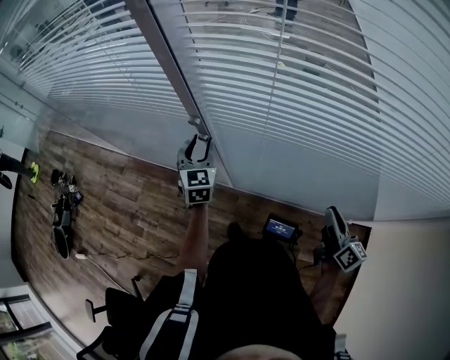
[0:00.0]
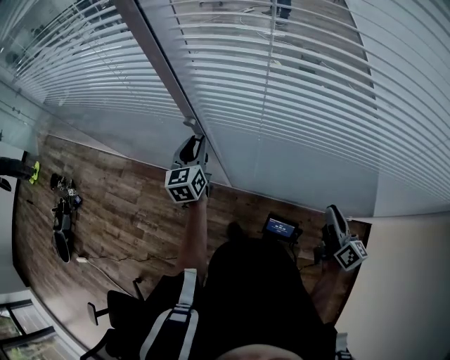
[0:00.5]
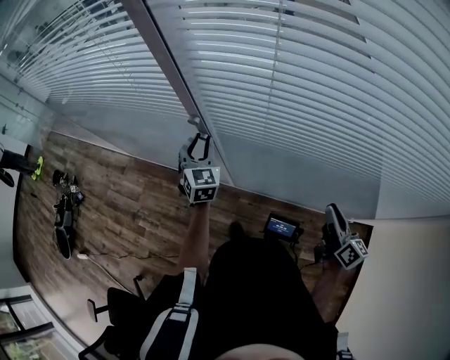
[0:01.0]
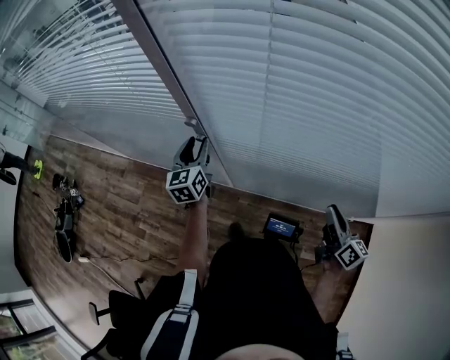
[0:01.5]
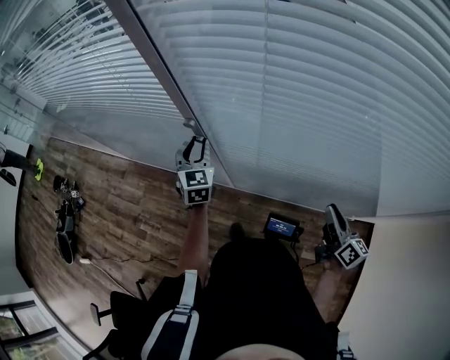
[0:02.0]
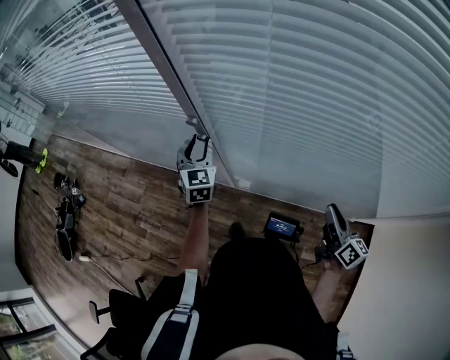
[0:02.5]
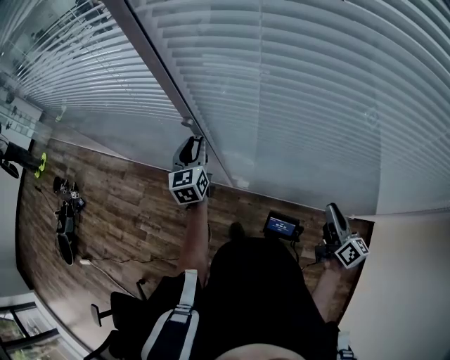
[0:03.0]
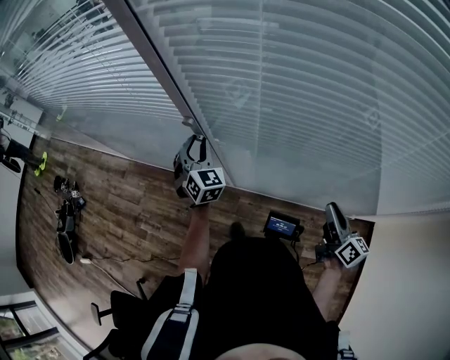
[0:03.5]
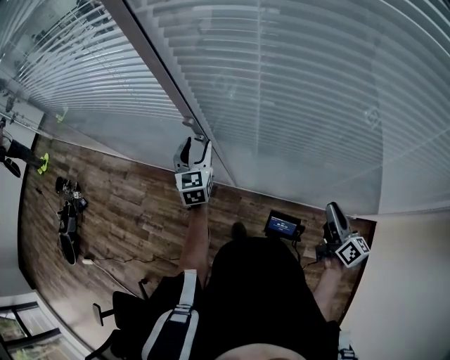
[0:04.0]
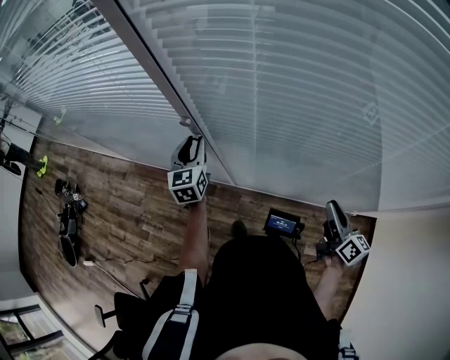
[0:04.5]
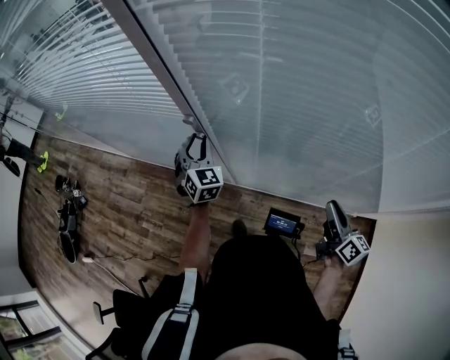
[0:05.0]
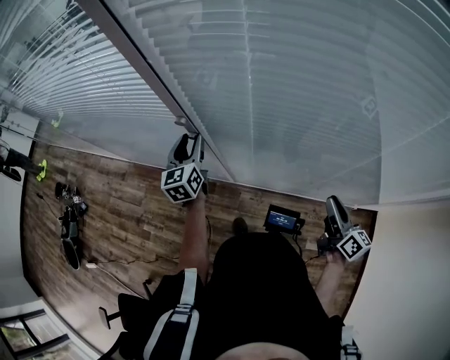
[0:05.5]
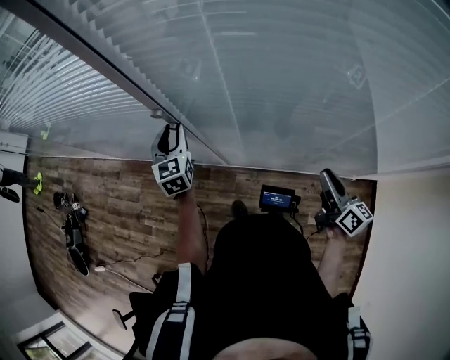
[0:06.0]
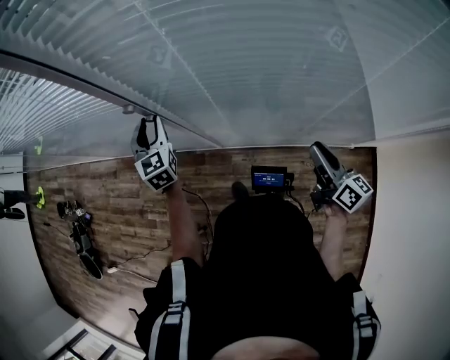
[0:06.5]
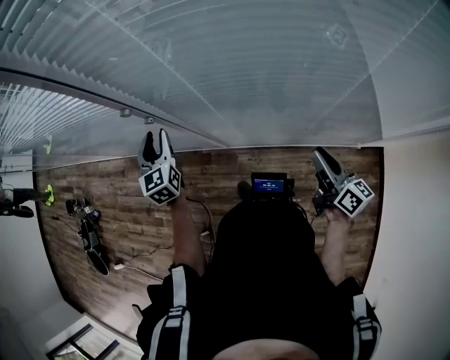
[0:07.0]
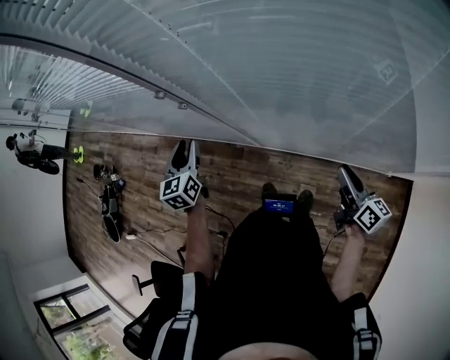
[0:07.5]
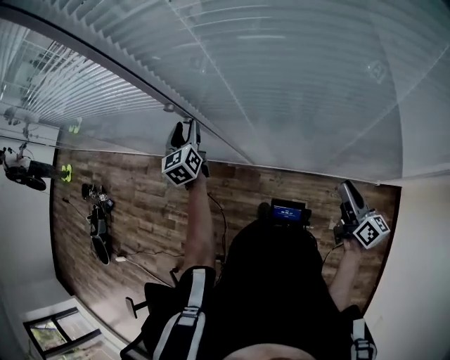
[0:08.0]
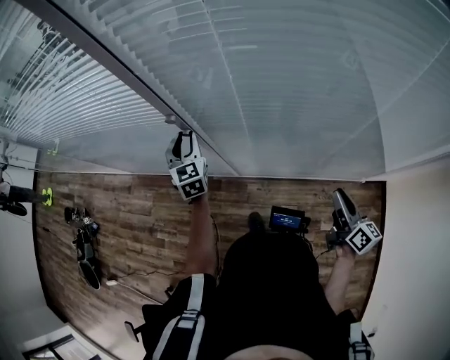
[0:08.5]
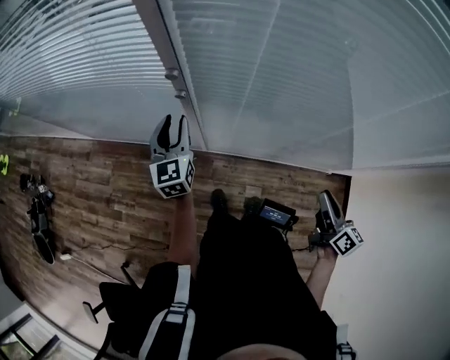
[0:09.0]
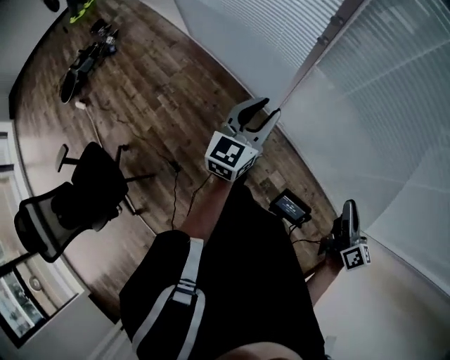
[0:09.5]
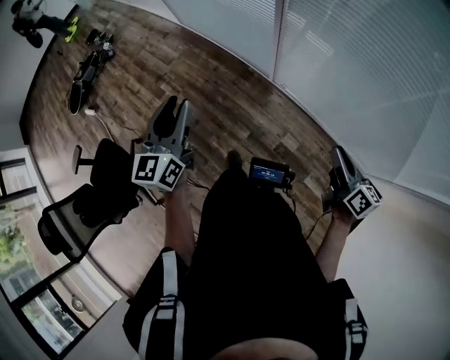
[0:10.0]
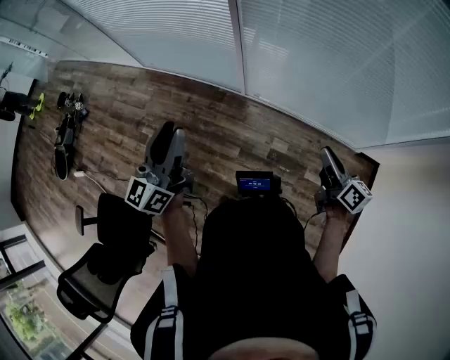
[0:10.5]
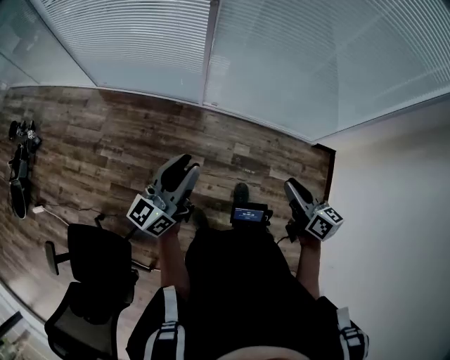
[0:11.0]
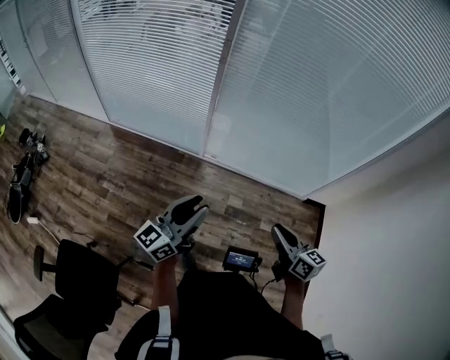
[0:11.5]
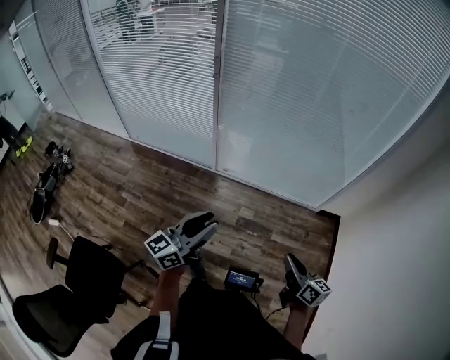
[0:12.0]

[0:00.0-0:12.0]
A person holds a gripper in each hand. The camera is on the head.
0:02.0 to 0:04.0: The left gripper opens.
0:06.0 to 0:08.0: The right gripper travels downward by roughly 10 cm; the left gripper reaches roughly 10 cm backward, then returns.
0:08.0 to 0:10.0: The left gripper shifts by approximately 50 cm. The right gripper goes upward and returns, some 10 cm each way, and changes its angle by some 30 degrees.
0:10.0 to 0:12.0: The left gripper moves approximately 30 cm, and turns by approximately 60 degrees, while the right gripper ends up some 40 cm from where it was, and changes its angle by some 20 degrees.

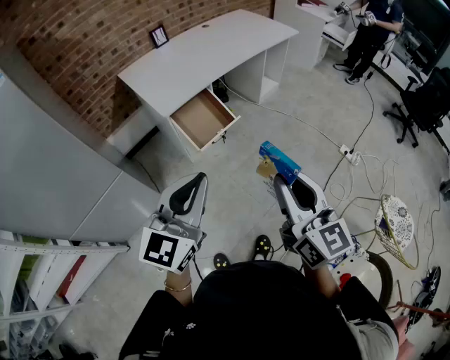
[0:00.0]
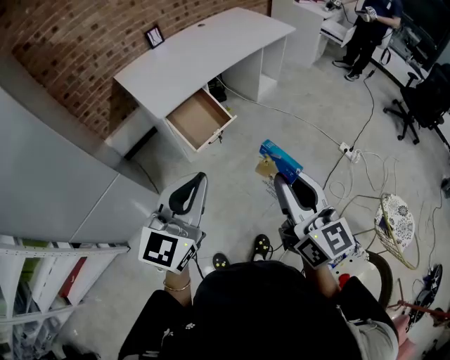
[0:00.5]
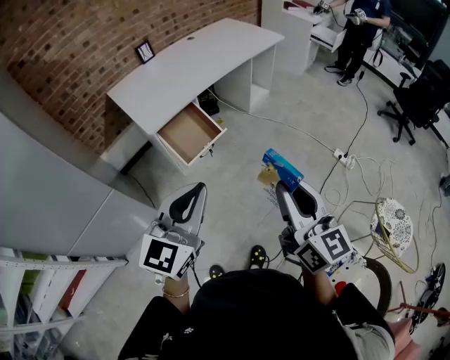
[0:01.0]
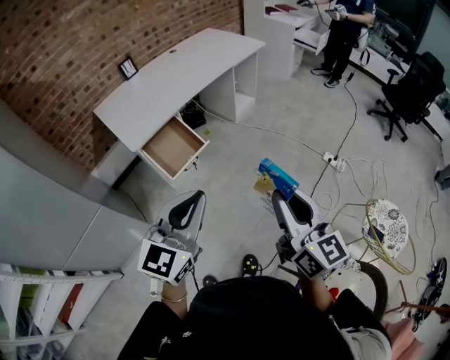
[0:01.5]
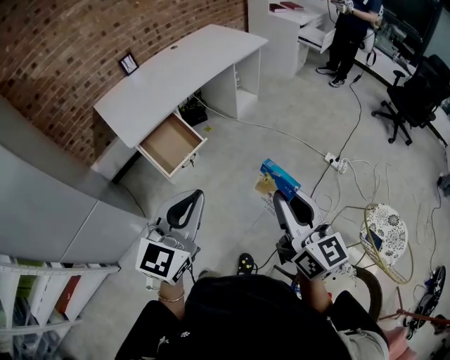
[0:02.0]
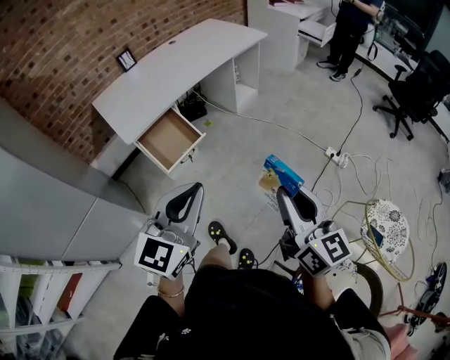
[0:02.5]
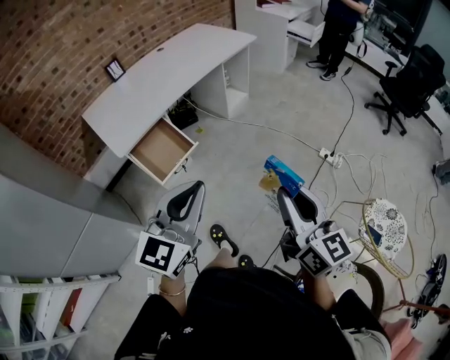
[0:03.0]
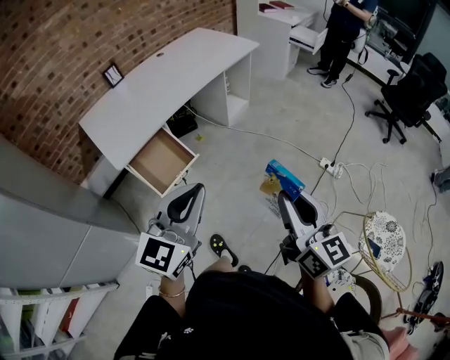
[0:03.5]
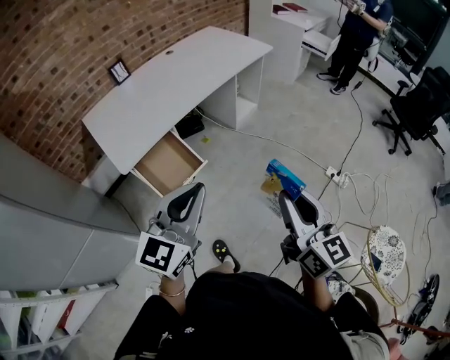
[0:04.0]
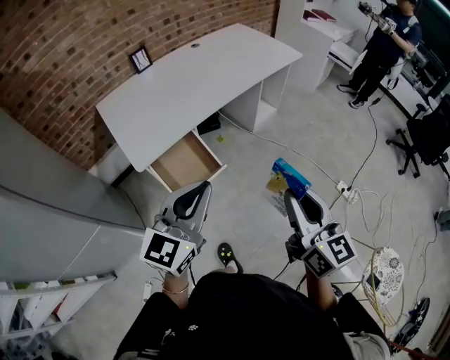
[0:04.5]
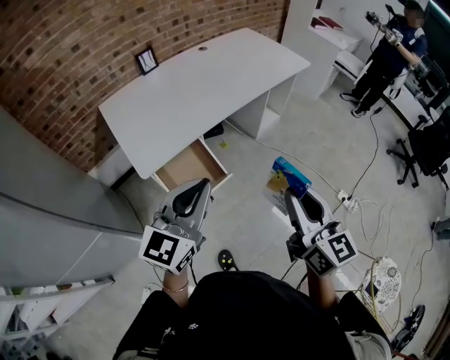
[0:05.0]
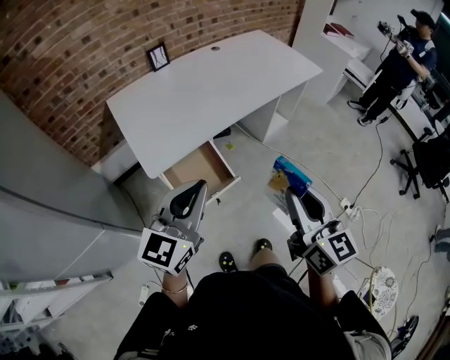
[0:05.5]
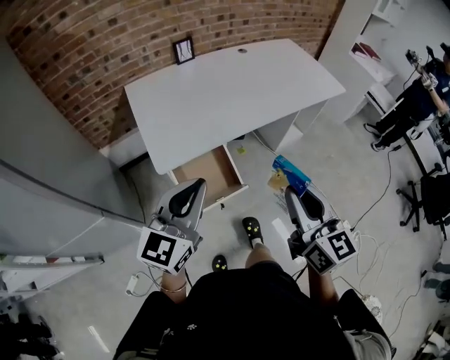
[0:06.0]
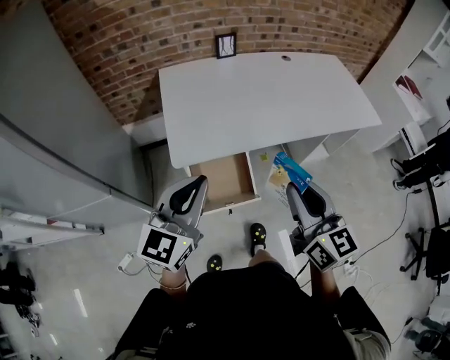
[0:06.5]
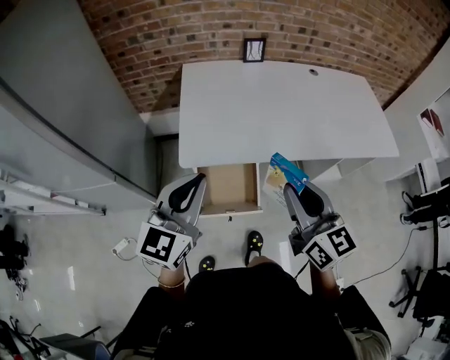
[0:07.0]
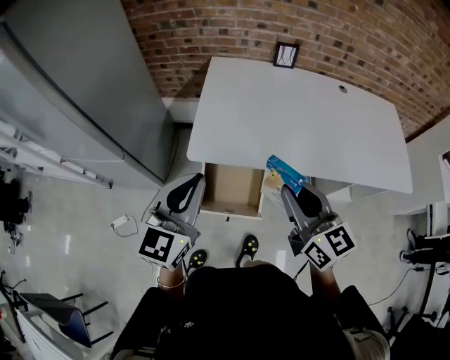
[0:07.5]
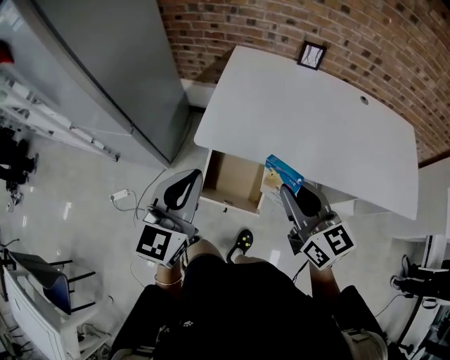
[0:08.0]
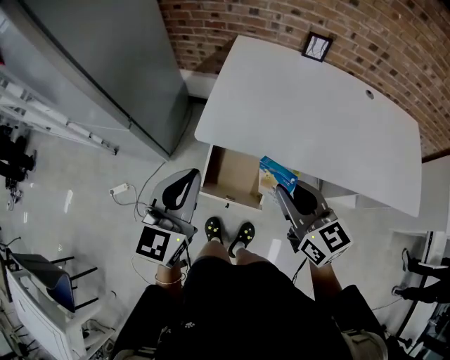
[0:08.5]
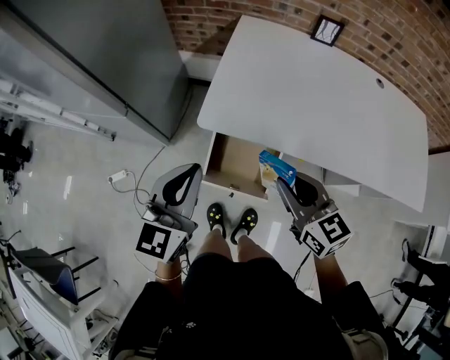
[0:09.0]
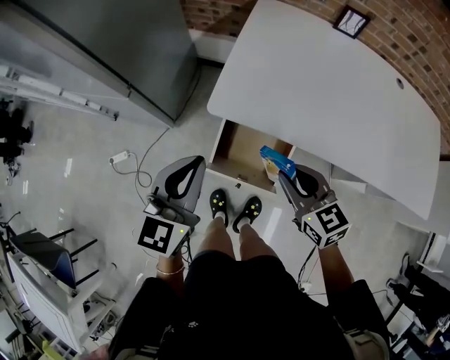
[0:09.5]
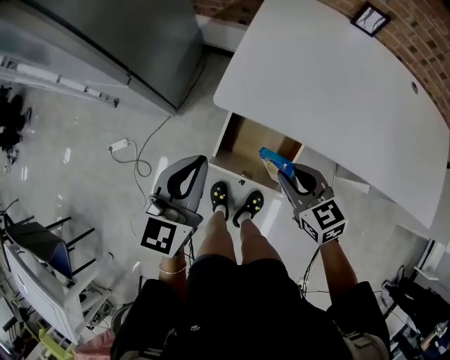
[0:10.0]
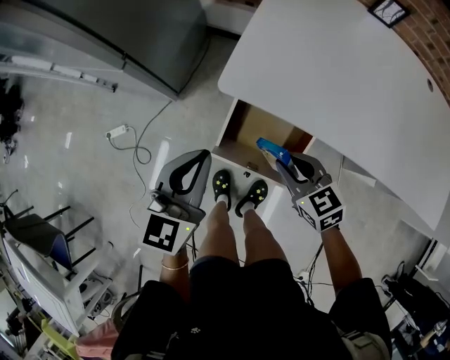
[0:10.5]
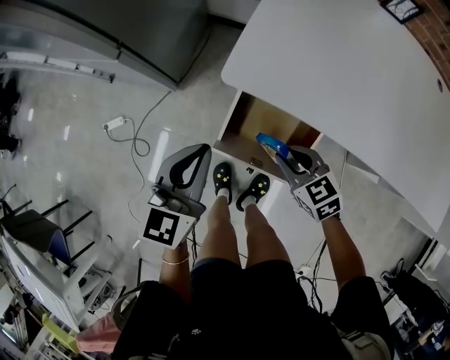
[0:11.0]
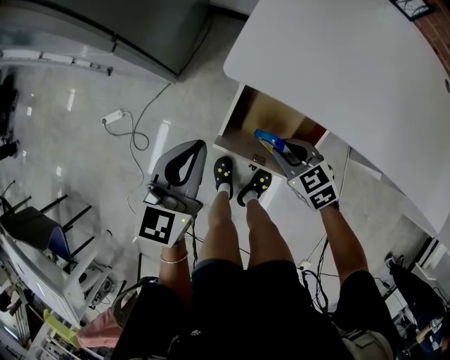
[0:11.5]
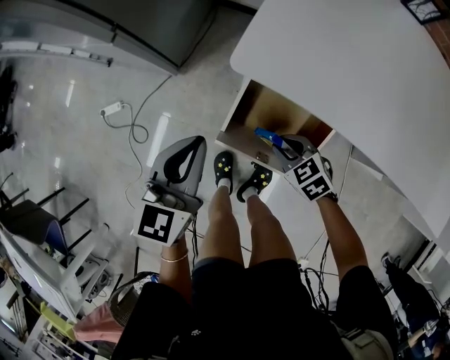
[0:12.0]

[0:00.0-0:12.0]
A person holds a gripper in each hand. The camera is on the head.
0:00.0 to 0:02.0: The grippers both shift to the right by about 20 cm.
0:02.0 to 0:04.0: Both grippers travel together forward, some 15 cm.
0:04.0 to 0:06.0: The right gripper moves forward and to the left, some 25 cm, and rotates about 20 degrees; the left gripper travels to the left and forward by roughly 25 cm, and rotates about 20 degrees.
0:06.0 to 0:08.0: The right gripper ends up some 20 cm from where it was, and rotates roughly 50 degrees. Meanwhile the left gripper shifts by some 5 cm, and turns by roughly 50 degrees.
0:08.0 to 0:10.0: The right gripper travels downward by about 20 cm, and turns by roughly 30 degrees; the left gripper shifts approximately 15 cm downward and to the left.
0:10.0 to 0:12.0: The left gripper is displaced downward by about 15 cm. The right gripper is displaced downward by approximately 20 cm, and rotates about 30 degrees.

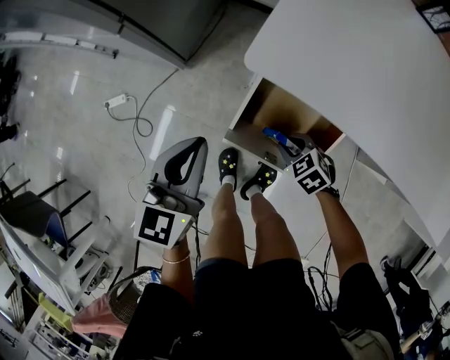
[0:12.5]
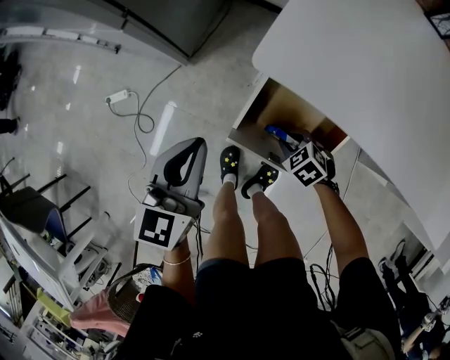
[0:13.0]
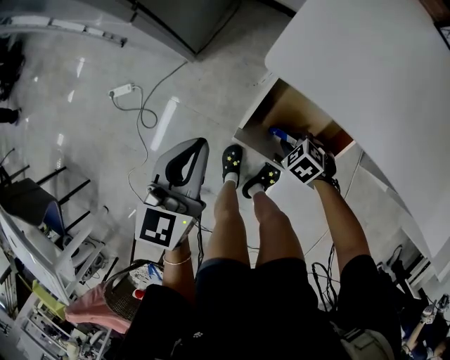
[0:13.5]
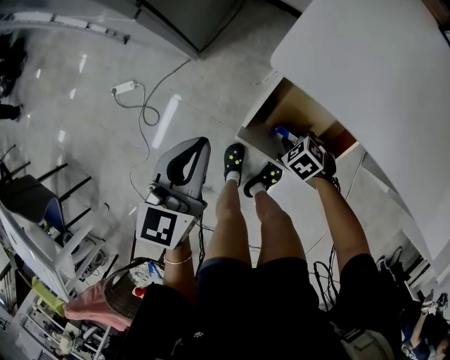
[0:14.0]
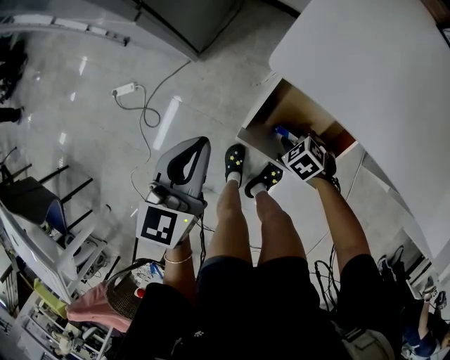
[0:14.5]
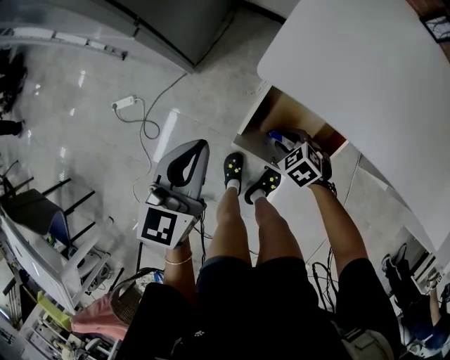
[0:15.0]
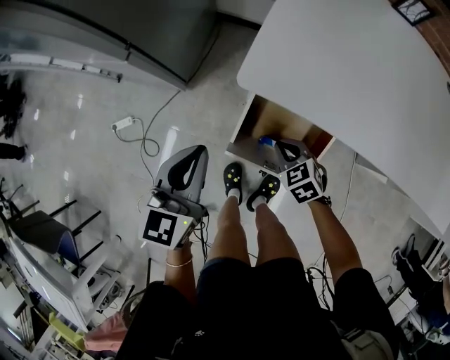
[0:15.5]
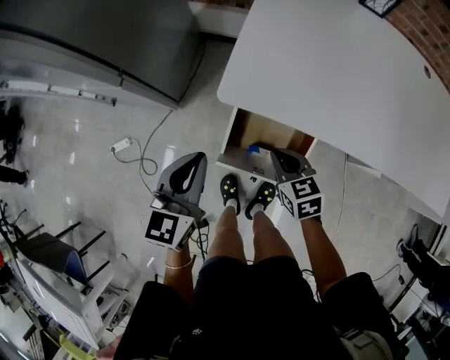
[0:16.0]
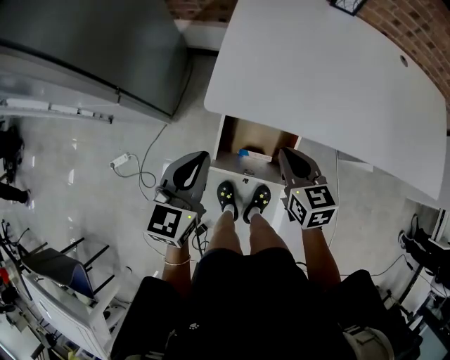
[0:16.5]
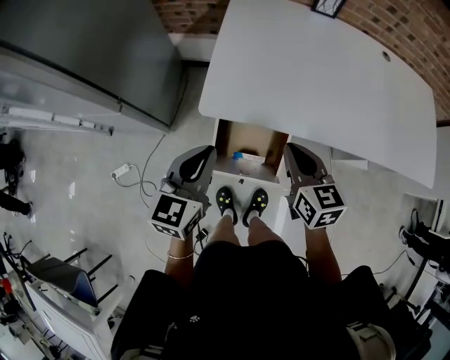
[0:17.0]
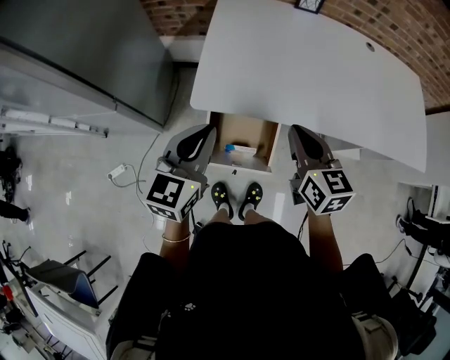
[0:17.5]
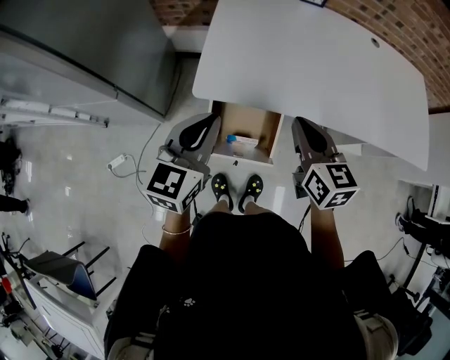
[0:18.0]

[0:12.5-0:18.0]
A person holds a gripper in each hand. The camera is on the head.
0:12.5 to 0:14.5: The right gripper shifts approximately 5 cm downward.
0:14.5 to 0:16.0: The right gripper travels upward by some 20 cm, changes its angle by some 50 degrees, and closes its fingers. Meanwhile the left gripper shifts approximately 10 cm upward and to the right.
0:16.0 to 0:18.0: The left gripper moves upward and to the right, approximately 15 cm. The right gripper goes roughly 25 cm upward and to the right, and rotates about 30 degrees.
